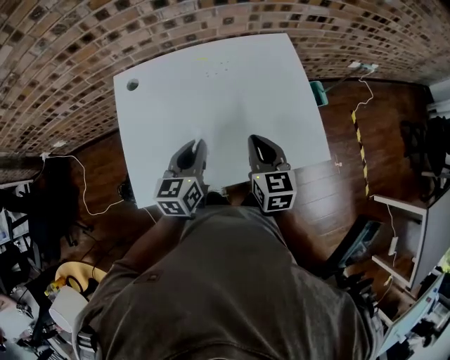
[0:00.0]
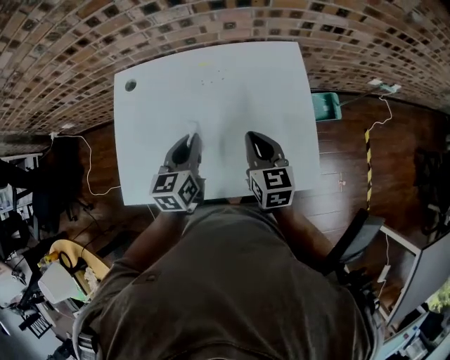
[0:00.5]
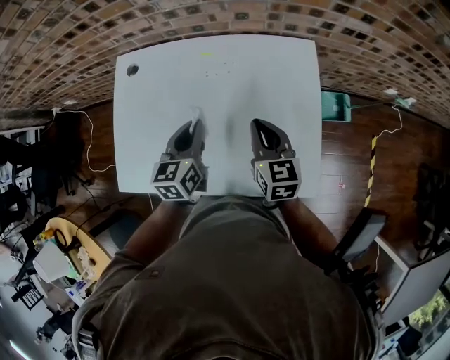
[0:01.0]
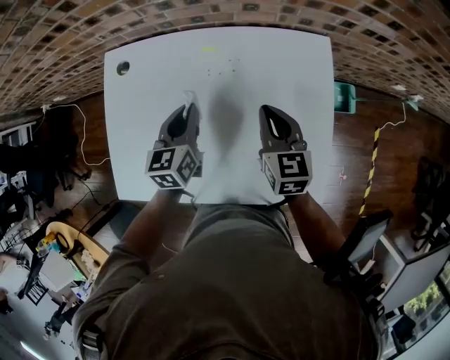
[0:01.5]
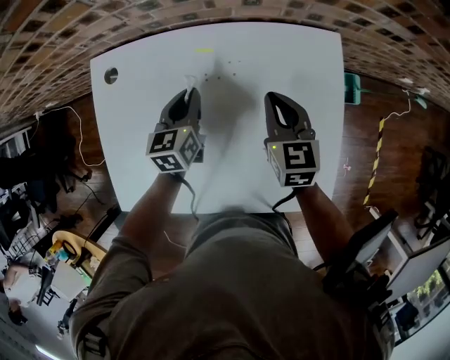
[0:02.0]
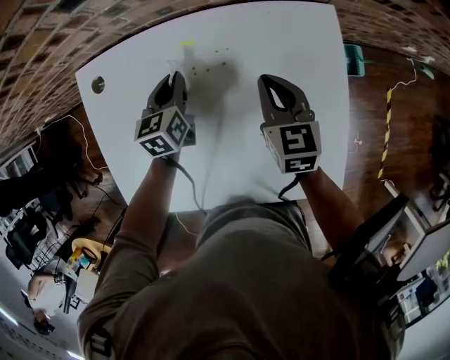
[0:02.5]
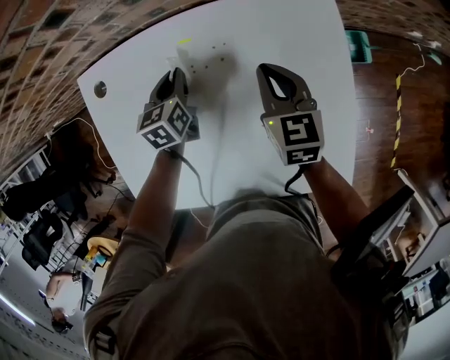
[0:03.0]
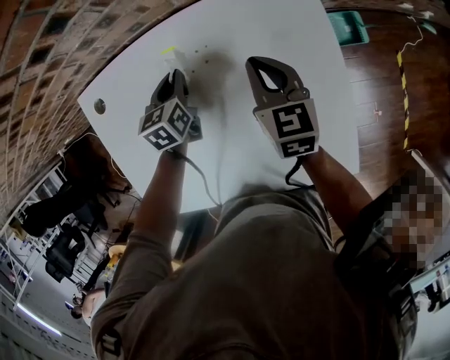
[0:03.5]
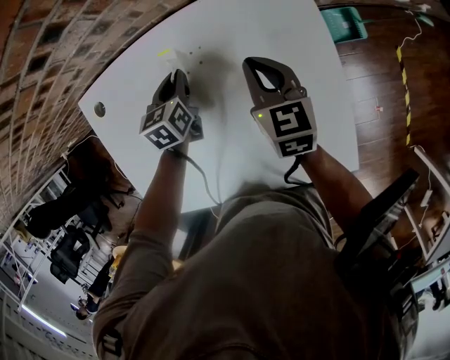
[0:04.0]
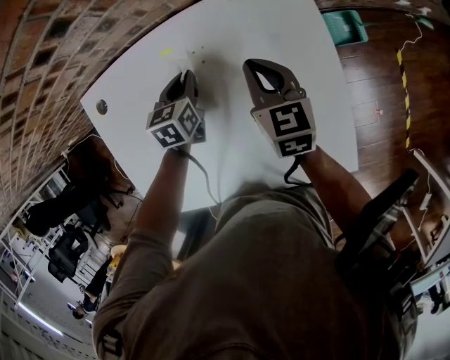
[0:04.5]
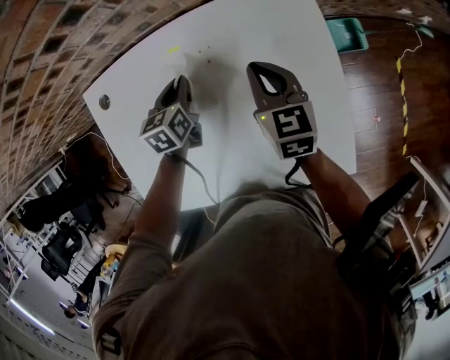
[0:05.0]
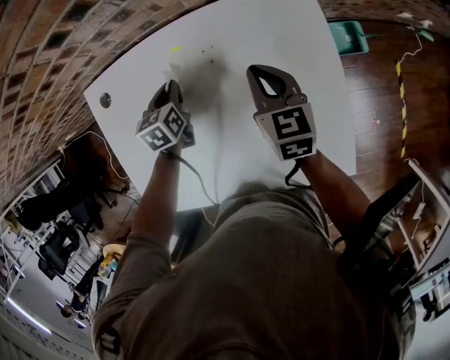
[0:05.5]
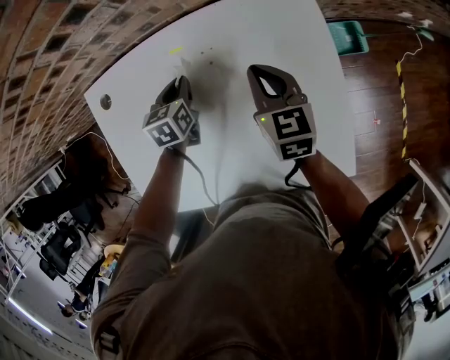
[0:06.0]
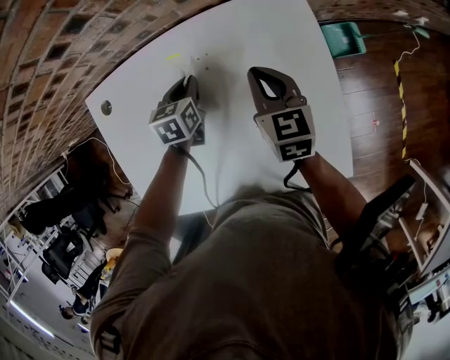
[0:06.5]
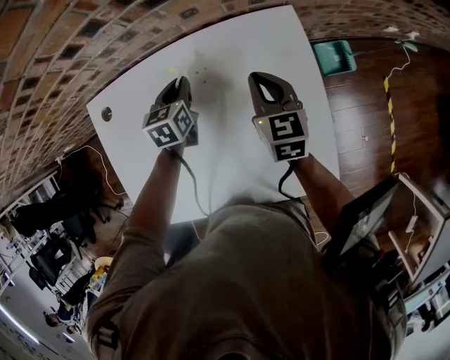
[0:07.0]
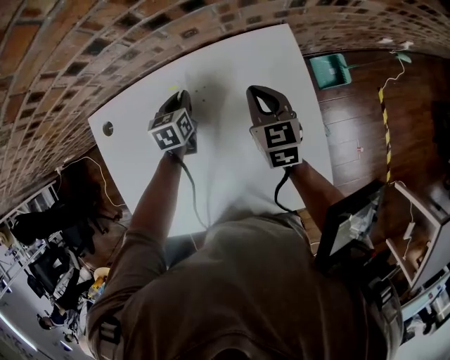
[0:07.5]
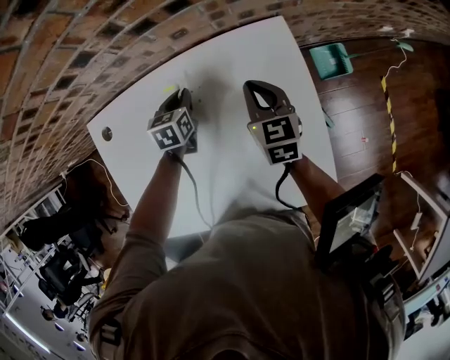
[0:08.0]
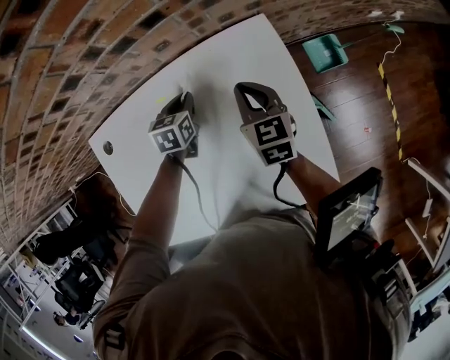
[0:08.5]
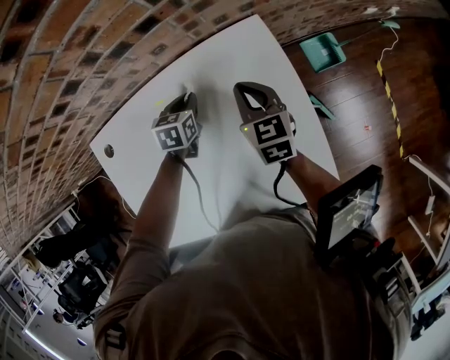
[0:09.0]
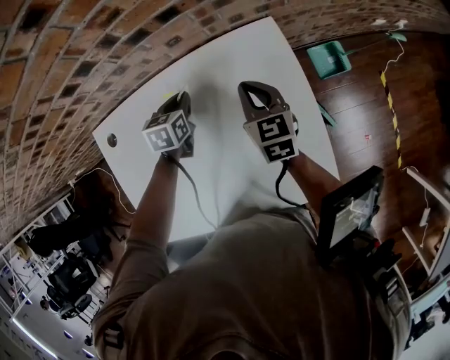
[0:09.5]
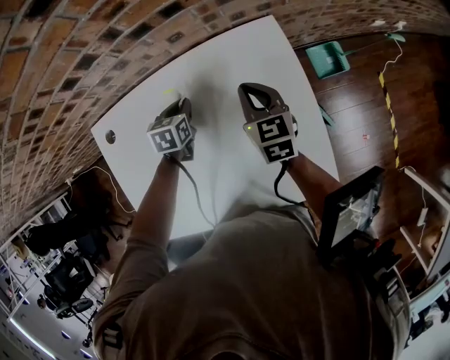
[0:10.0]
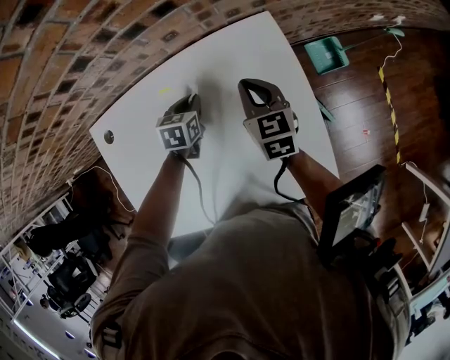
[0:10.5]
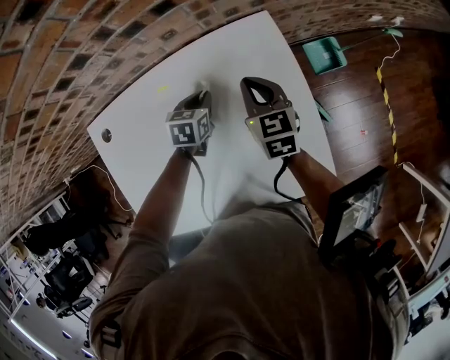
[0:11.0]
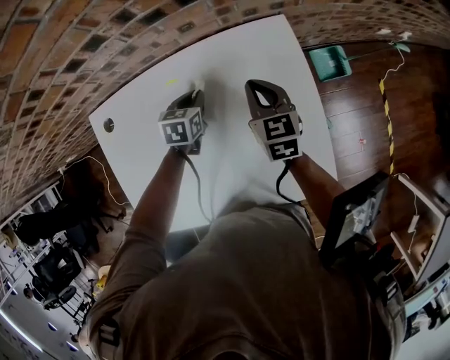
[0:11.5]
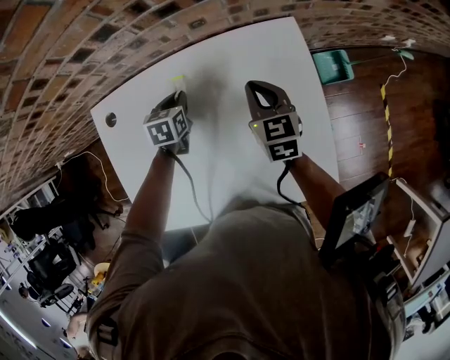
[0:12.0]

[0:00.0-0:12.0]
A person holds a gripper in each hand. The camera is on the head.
0:00.0 to 0:02.0: The right gripper travels forward by approximately 25 cm, while the left gripper goes approximately 25 cm forward and downward.
0:02.0 to 0:04.0: The left gripper changes place by approximately 5 cm.
0:04.0 to 0:06.0: The grippers move only a little.
0:06.0 to 0:08.0: The right gripper ends up roughly 5 cm from where it was; the left gripper heads to the right and forward, covering about 10 cm.
0:08.0 to 0:10.0: The grippers move only a little.
0:10.0 to 0:12.0: The left gripper travels to the left by some 5 cm.

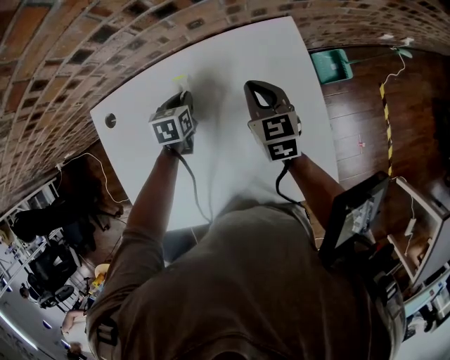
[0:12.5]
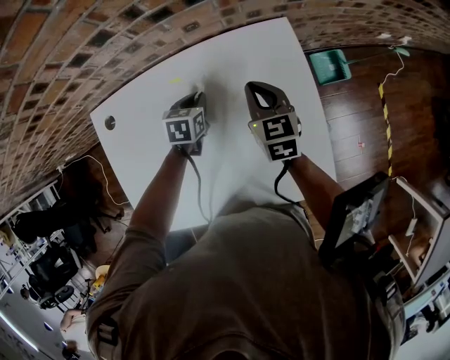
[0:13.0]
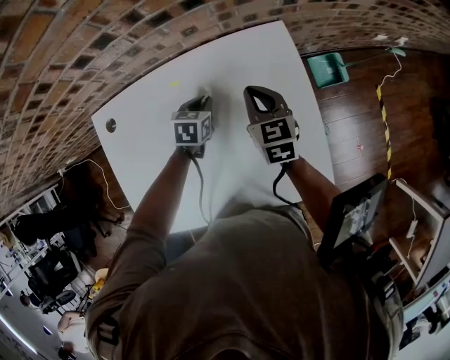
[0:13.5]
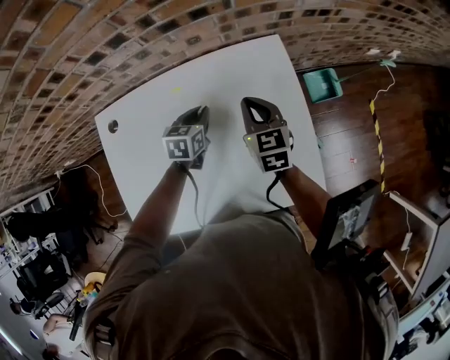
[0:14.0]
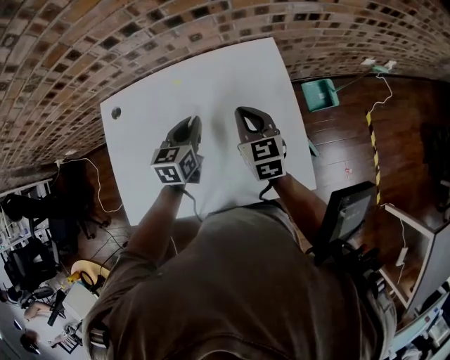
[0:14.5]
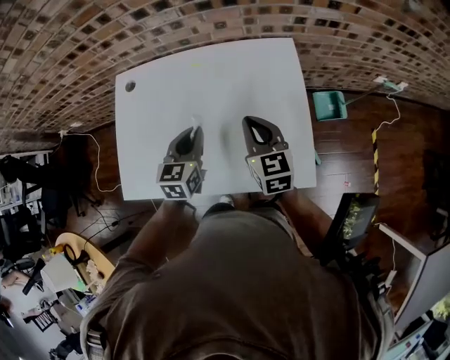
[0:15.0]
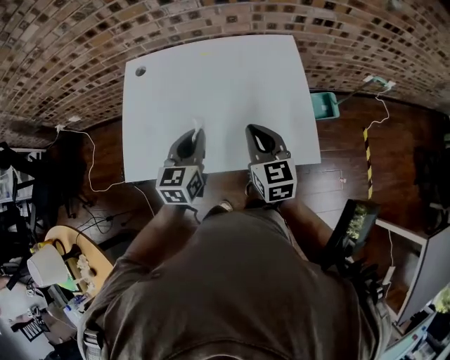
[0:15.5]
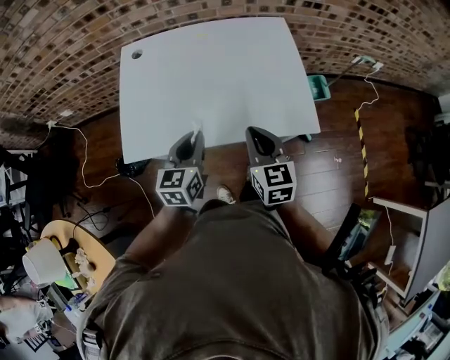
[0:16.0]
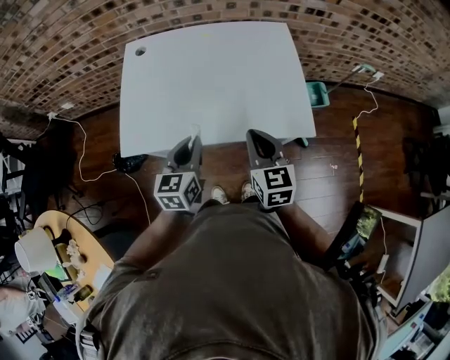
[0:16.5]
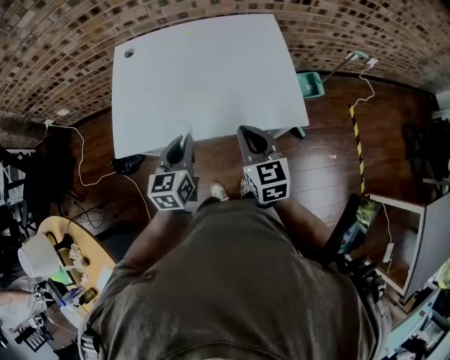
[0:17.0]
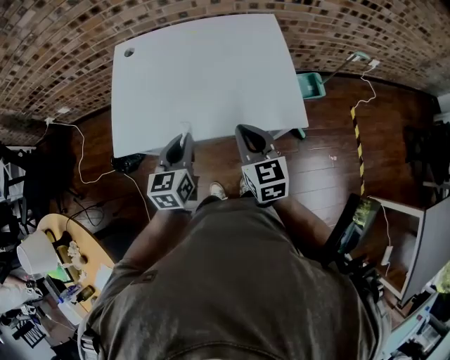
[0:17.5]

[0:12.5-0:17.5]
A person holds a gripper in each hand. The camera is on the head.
0:12.5 to 0:15.0: Both grippers move backward and upward, approximately 25 cm. The left gripper rotates some 30 degrees.
0:15.0 to 0:17.5: Both grippers move backward, about 20 cm.

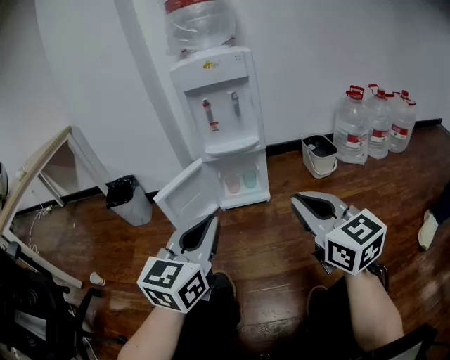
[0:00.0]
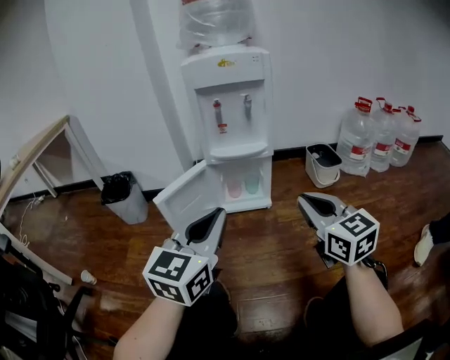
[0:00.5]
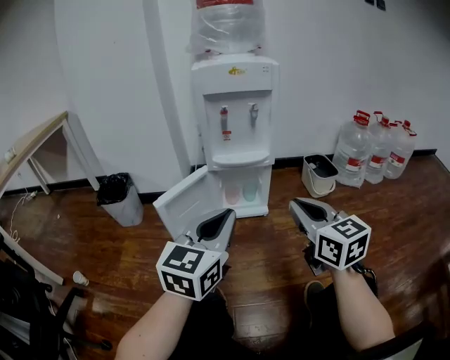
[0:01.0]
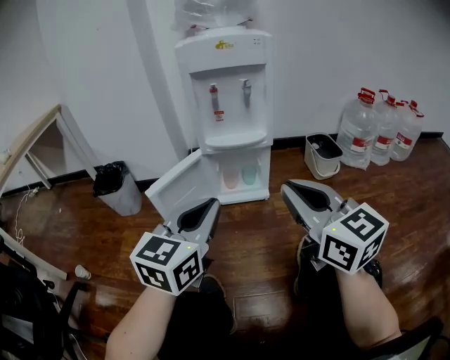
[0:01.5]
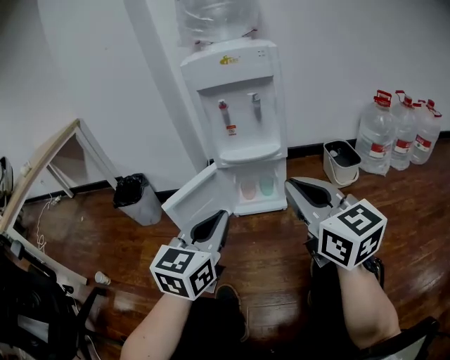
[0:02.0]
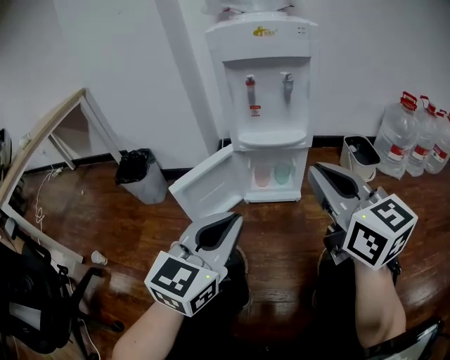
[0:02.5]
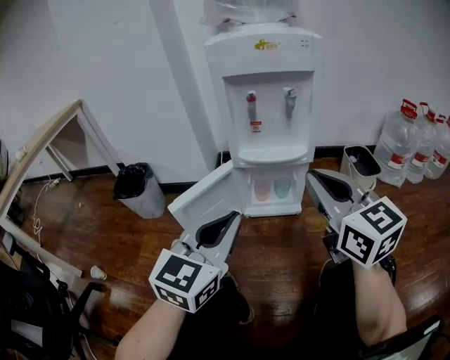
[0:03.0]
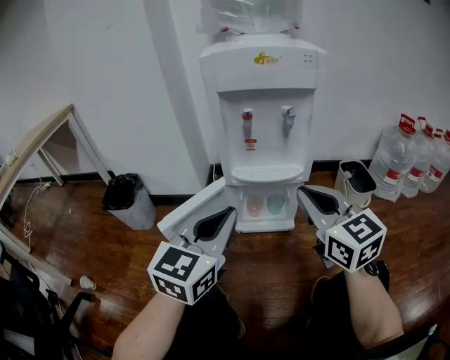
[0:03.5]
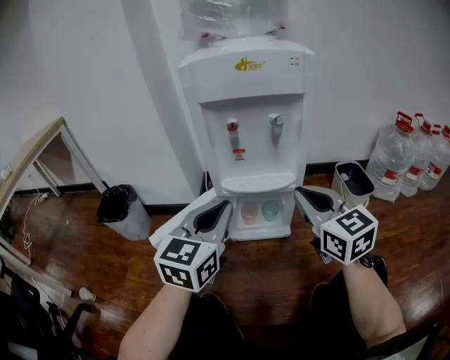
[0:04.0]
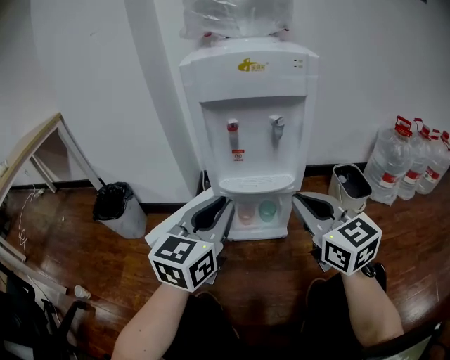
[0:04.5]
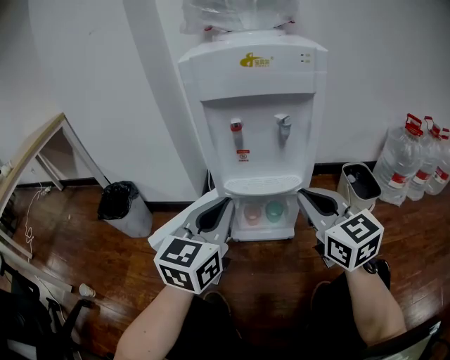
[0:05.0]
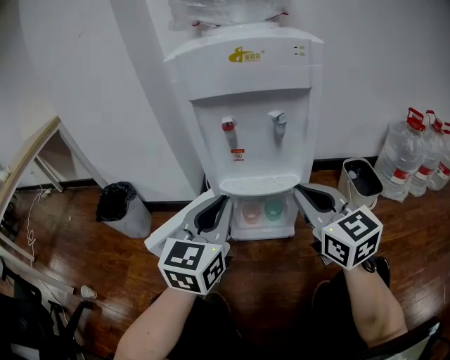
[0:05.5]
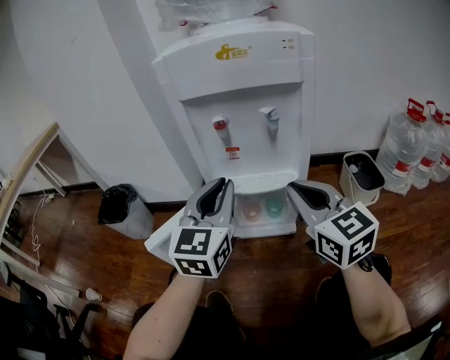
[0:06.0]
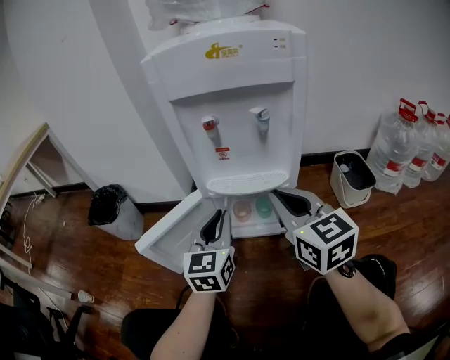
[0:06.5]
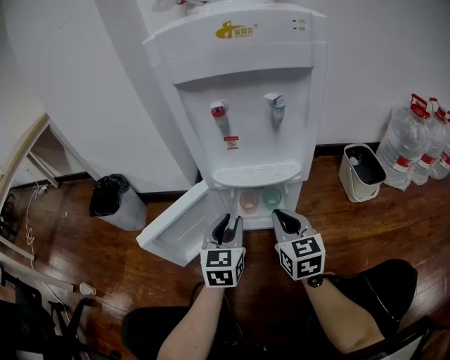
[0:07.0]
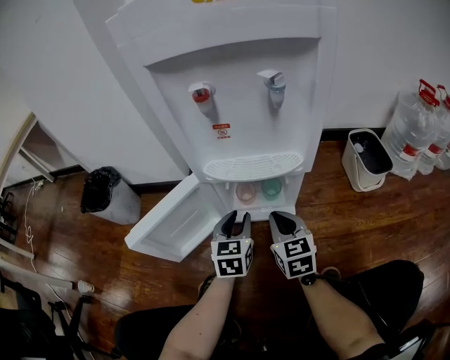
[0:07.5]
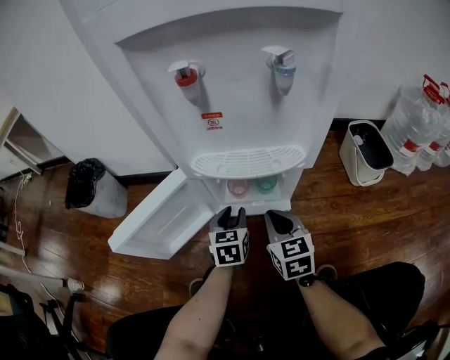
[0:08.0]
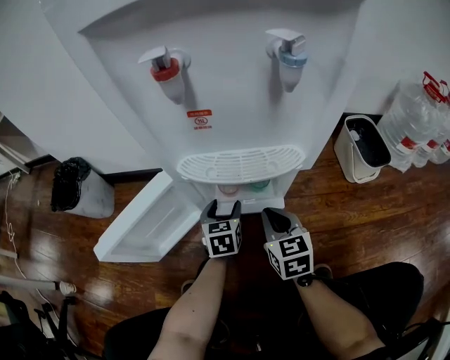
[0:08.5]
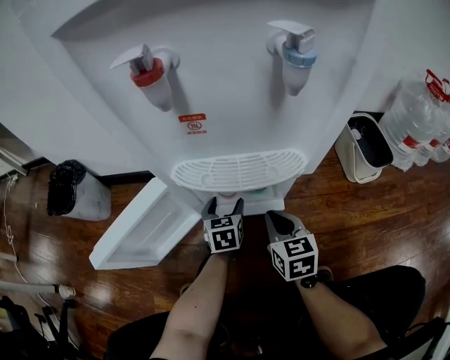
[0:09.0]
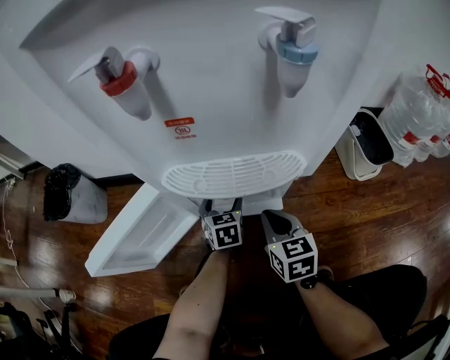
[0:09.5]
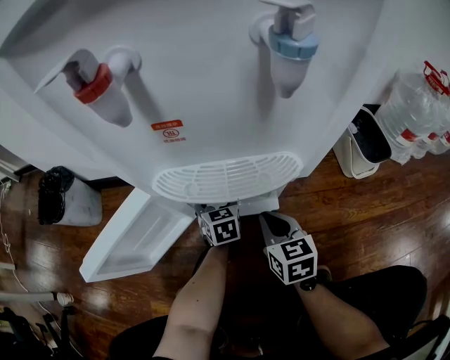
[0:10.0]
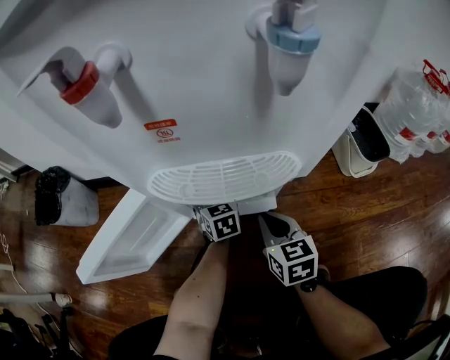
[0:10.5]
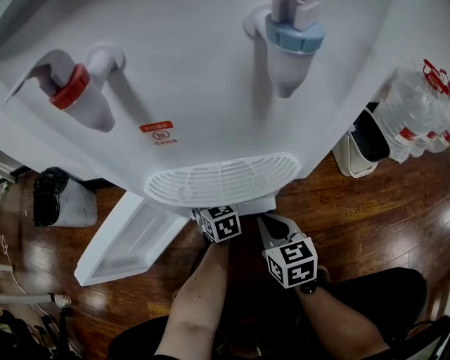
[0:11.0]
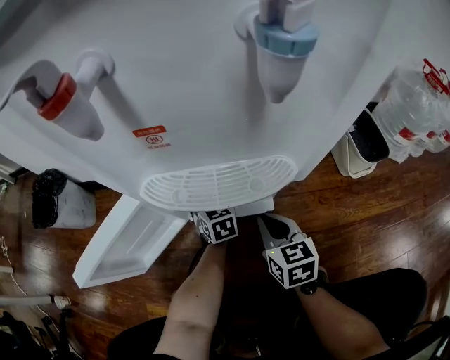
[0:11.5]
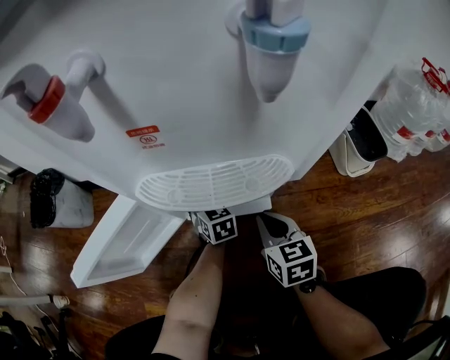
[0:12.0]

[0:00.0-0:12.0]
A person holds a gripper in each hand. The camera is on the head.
0:00.0 to 0:02.0: Both grippers move forward, some 10 cm.
0:02.0 to 0:04.0: The two grippers go some 20 cm forward.
0:04.0 to 0:06.0: The left gripper heads forward, covering roughly 5 cm.
0:06.0 to 0:08.0: The two grippers go about 35 cm downward. The right gripper changes its angle by about 20 degrees. Meanwhile the left gripper points its fingers about 30 degrees further downward.
0:08.0 to 0:10.0: The left gripper is displaced forward and downward by some 15 cm, and opens. Meanwhile the right gripper goes approximately 5 cm downward.
0:10.0 to 0:12.0: The grippers stay close to where they were, moving slightly.
